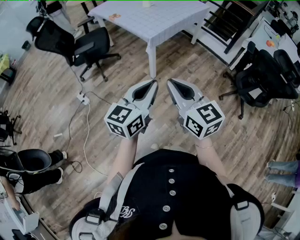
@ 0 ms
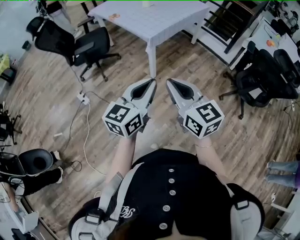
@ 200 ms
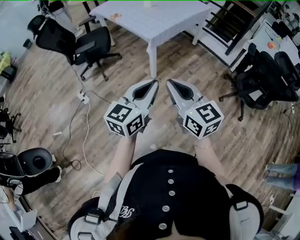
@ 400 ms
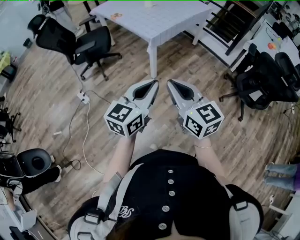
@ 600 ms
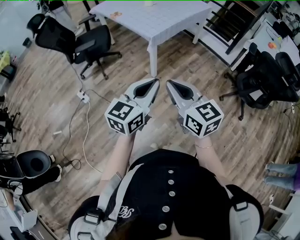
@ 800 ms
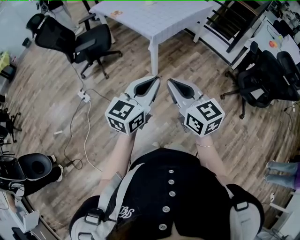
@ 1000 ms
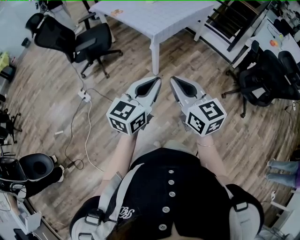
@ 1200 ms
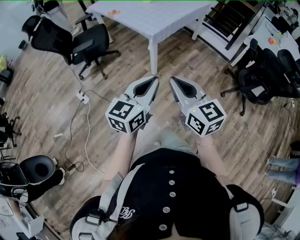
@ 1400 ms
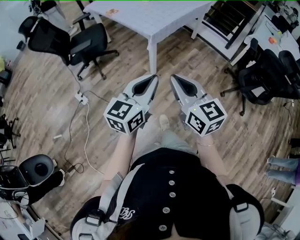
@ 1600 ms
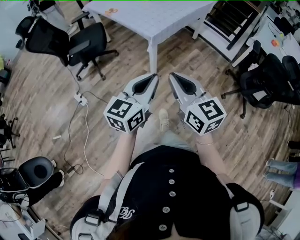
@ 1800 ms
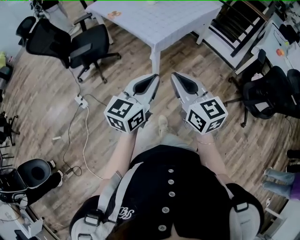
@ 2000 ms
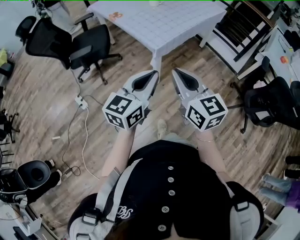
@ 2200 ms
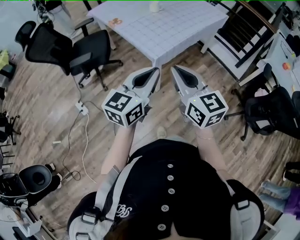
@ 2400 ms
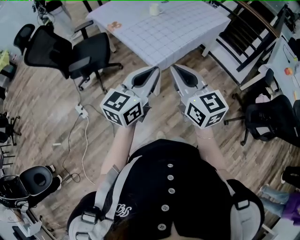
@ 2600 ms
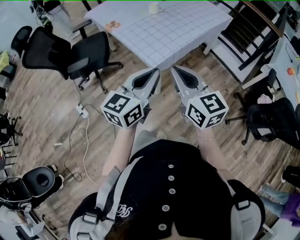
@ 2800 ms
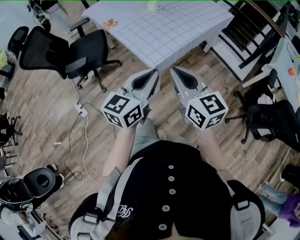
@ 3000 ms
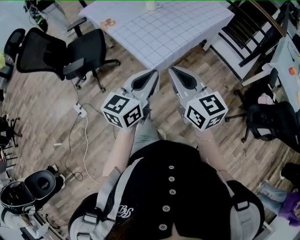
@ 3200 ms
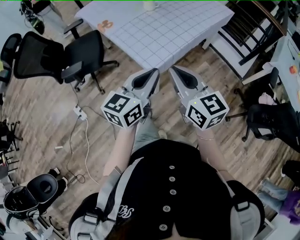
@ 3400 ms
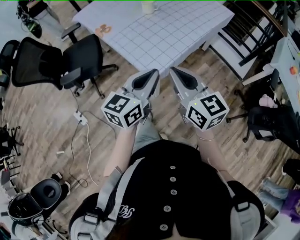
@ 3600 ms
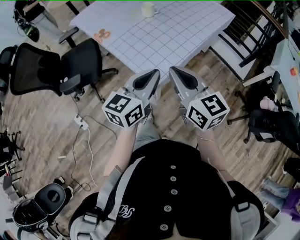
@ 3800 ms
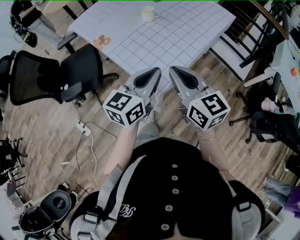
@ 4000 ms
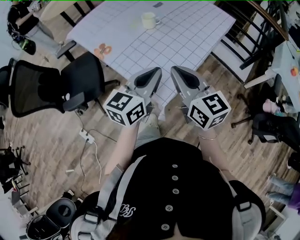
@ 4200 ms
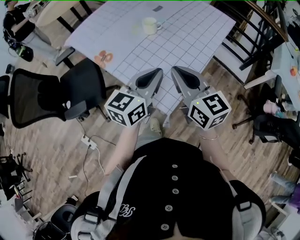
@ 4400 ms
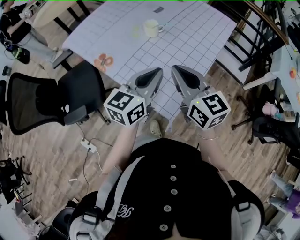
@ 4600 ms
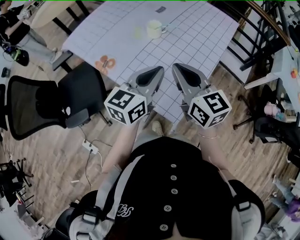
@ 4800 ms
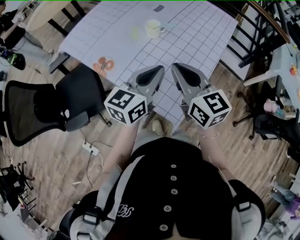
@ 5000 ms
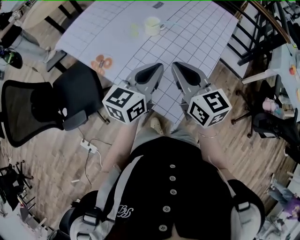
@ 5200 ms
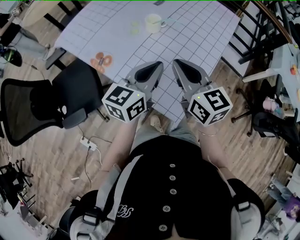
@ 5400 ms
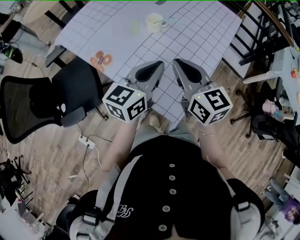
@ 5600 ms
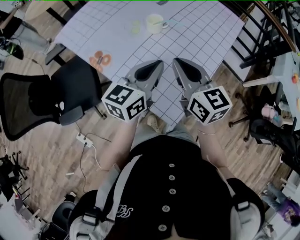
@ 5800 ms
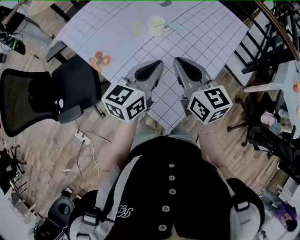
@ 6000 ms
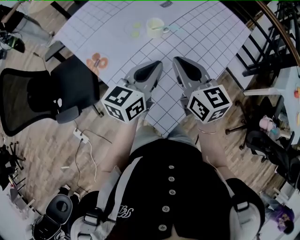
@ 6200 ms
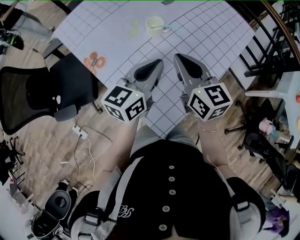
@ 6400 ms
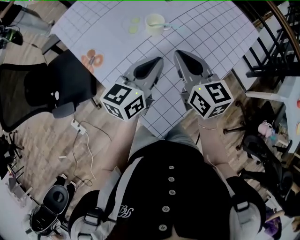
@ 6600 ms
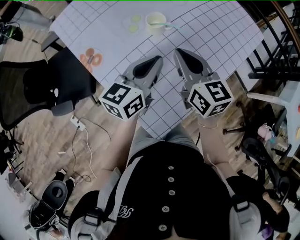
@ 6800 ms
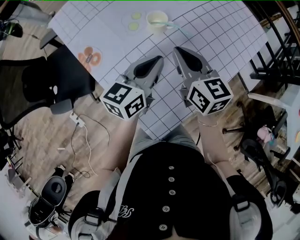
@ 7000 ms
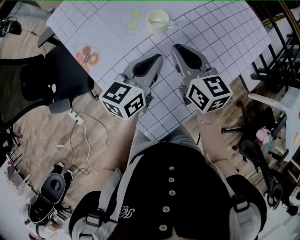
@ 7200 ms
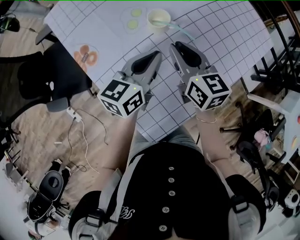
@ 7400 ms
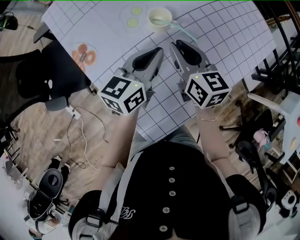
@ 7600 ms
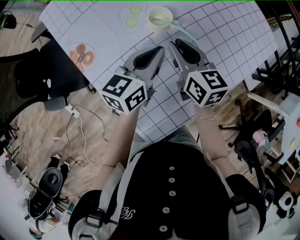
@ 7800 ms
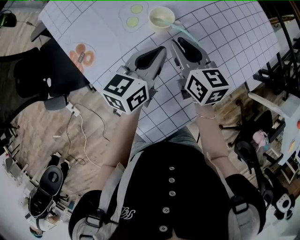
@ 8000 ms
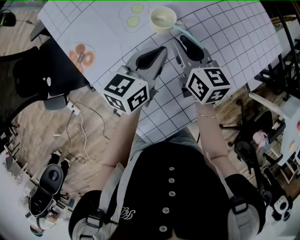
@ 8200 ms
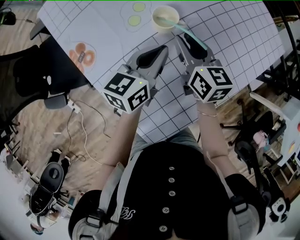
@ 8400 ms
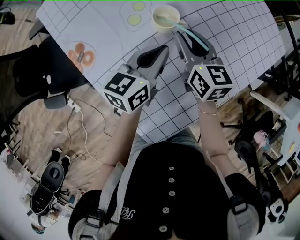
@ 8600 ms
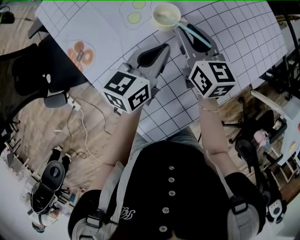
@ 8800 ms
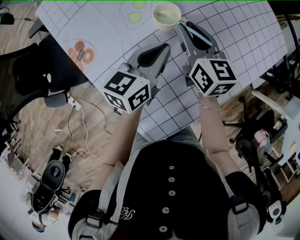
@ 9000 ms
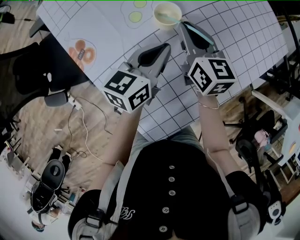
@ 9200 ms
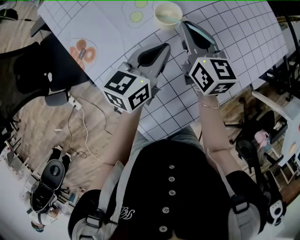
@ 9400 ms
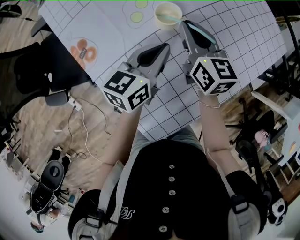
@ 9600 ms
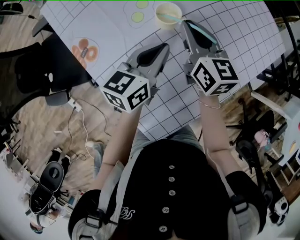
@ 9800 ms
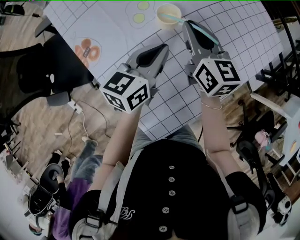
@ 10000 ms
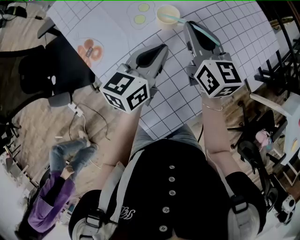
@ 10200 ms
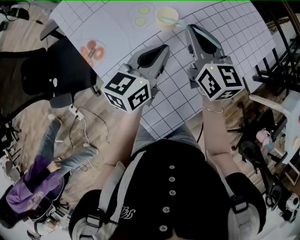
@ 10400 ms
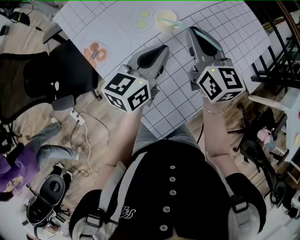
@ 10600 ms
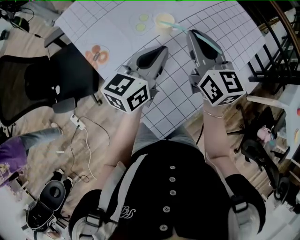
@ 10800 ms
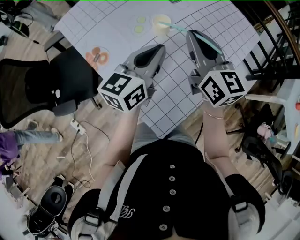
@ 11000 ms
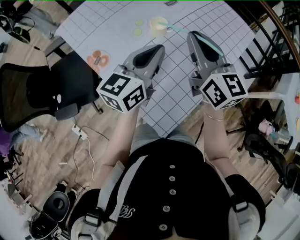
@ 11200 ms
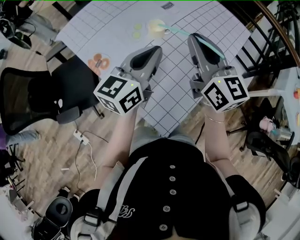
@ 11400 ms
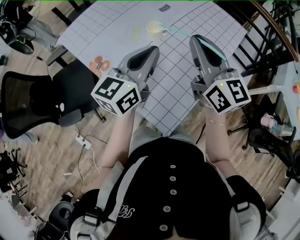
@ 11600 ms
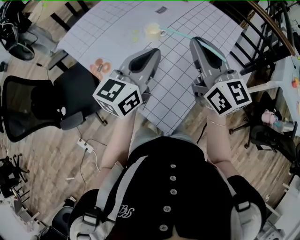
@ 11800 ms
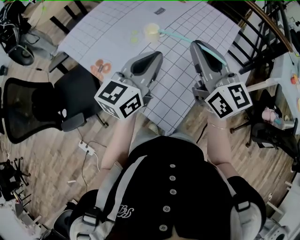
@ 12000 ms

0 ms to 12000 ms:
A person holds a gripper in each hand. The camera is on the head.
0 ms to 1600 ms: Both grippers travel together forward, about 5 cm.
1600 ms to 3000 ms: Both grippers move forward, some 35 cm.
3000 ms to 4400 ms: Both grippers travel together forward, roughly 25 cm.
4400 ms to 6000 ms: Both grippers travel together forward, about 15 cm.
6000 ms to 7600 ms: The two grippers go approximately 20 cm forward and downward.
7600 ms to 9000 ms: The right gripper goes roughly 5 cm forward.
9000 ms to 10400 ms: The left gripper is displaced upward by some 5 cm. The right gripper travels upward and backward by roughly 10 cm.
10400 ms to 12000 ms: The right gripper shifts about 25 cm backward and upward. Meanwhile the left gripper is displaced upward and backward by roughly 20 cm, and swivels approximately 20 degrees.

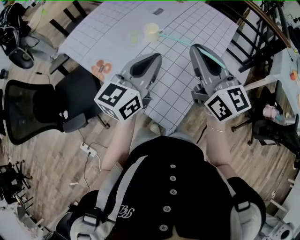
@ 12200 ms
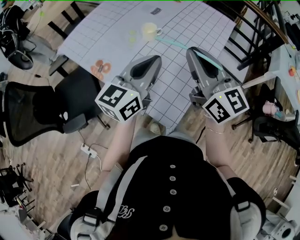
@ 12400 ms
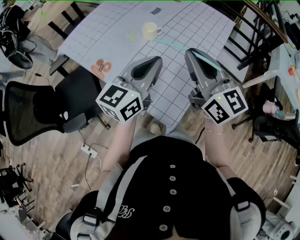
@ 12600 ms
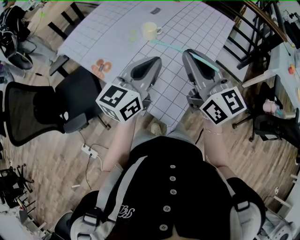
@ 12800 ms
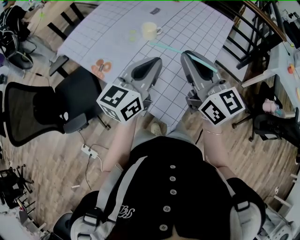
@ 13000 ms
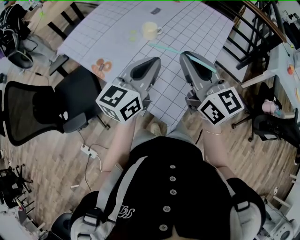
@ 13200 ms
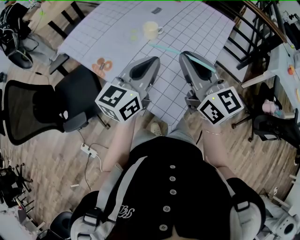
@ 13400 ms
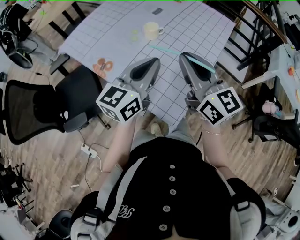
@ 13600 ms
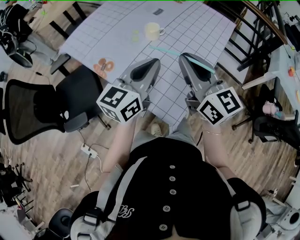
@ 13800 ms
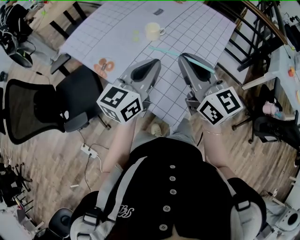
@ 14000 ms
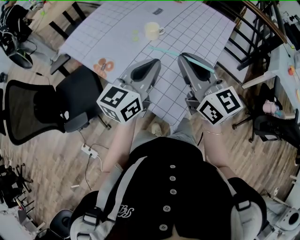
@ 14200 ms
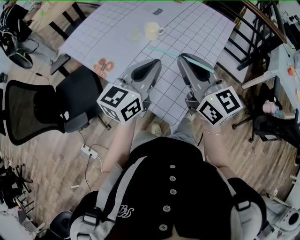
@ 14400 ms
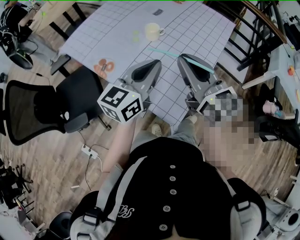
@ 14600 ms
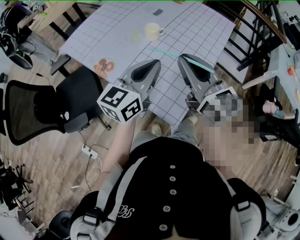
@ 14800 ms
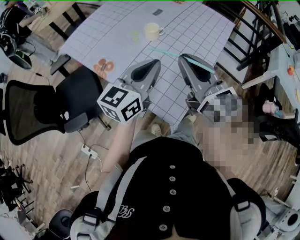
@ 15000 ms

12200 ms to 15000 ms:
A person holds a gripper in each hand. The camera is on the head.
12200 ms to 13600 ms: The right gripper moves approximately 5 cm.
13600 ms to 15000 ms: Both grippers stay put.

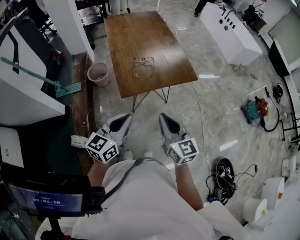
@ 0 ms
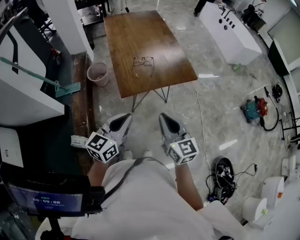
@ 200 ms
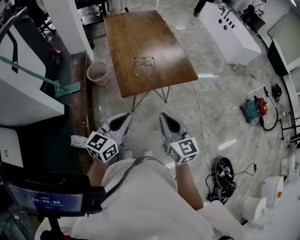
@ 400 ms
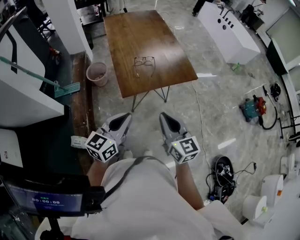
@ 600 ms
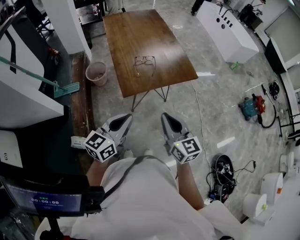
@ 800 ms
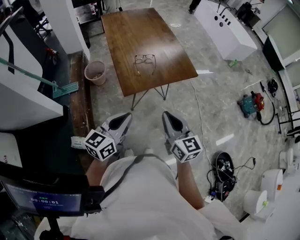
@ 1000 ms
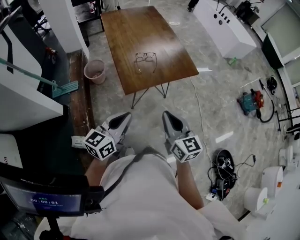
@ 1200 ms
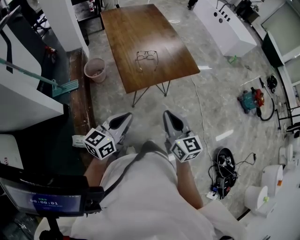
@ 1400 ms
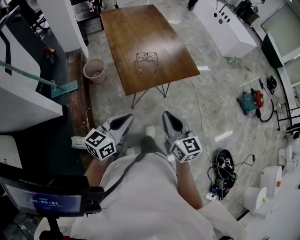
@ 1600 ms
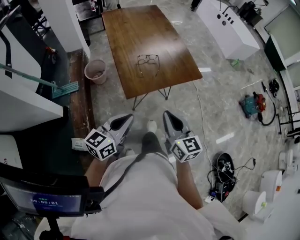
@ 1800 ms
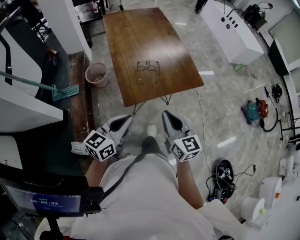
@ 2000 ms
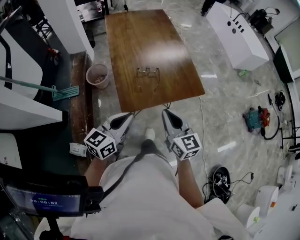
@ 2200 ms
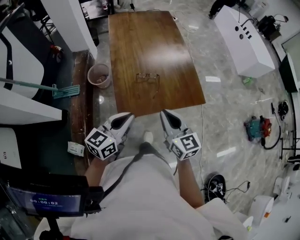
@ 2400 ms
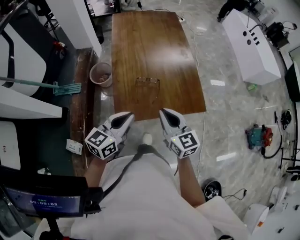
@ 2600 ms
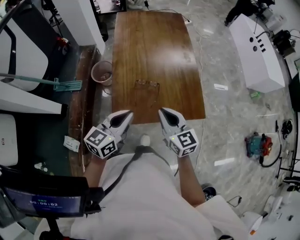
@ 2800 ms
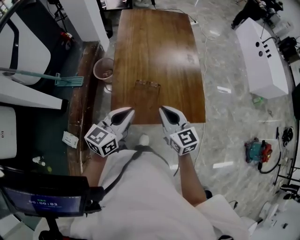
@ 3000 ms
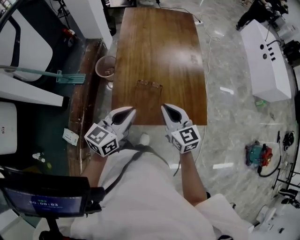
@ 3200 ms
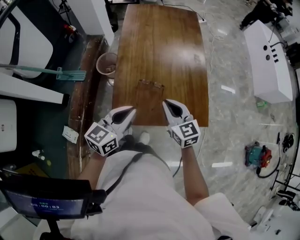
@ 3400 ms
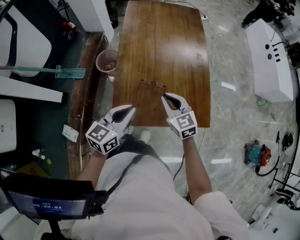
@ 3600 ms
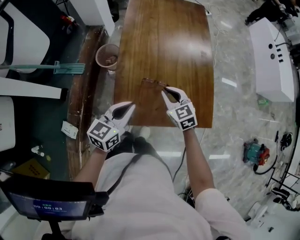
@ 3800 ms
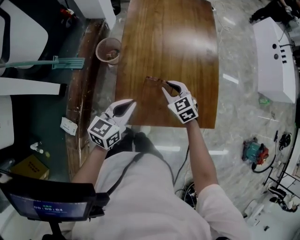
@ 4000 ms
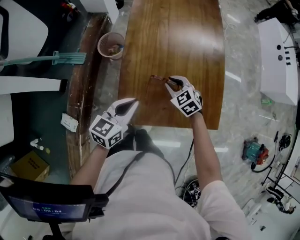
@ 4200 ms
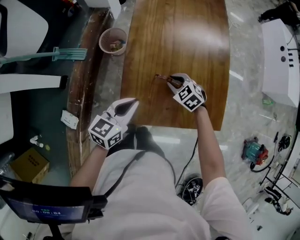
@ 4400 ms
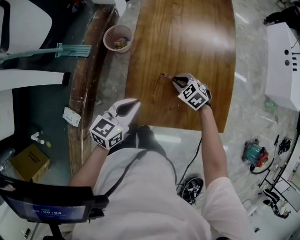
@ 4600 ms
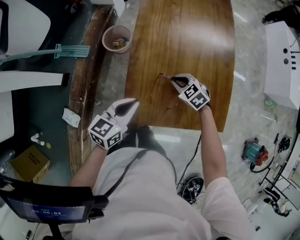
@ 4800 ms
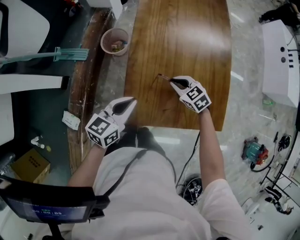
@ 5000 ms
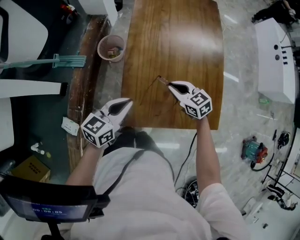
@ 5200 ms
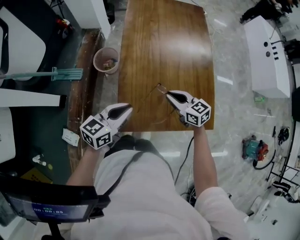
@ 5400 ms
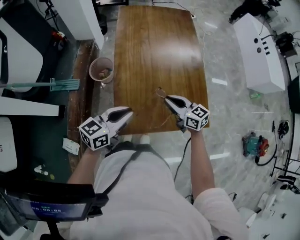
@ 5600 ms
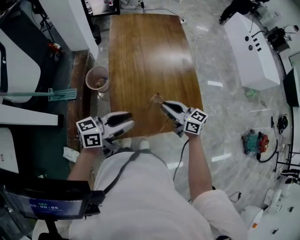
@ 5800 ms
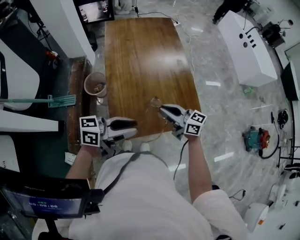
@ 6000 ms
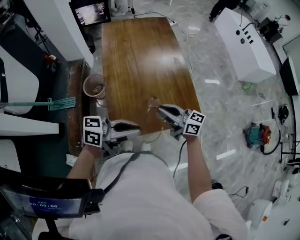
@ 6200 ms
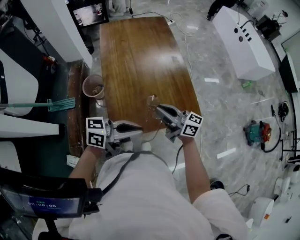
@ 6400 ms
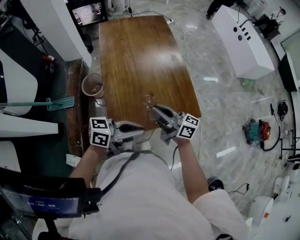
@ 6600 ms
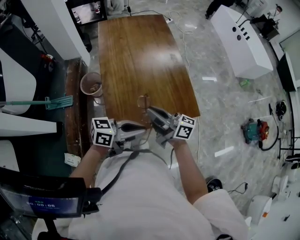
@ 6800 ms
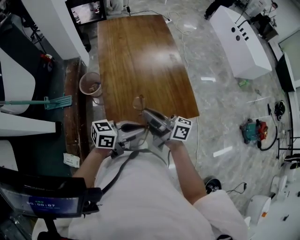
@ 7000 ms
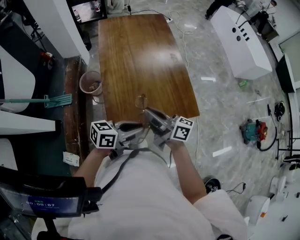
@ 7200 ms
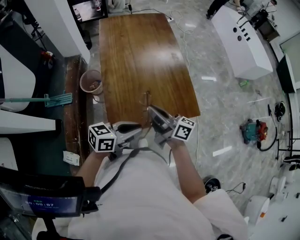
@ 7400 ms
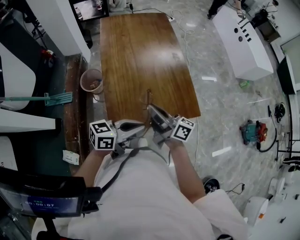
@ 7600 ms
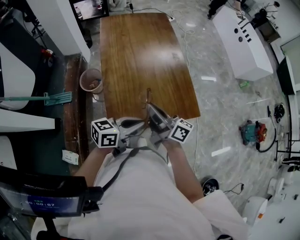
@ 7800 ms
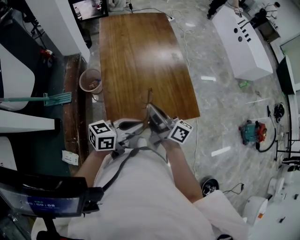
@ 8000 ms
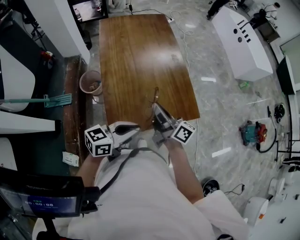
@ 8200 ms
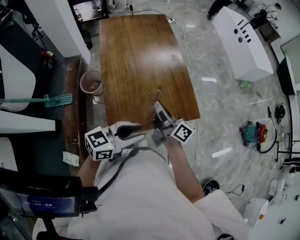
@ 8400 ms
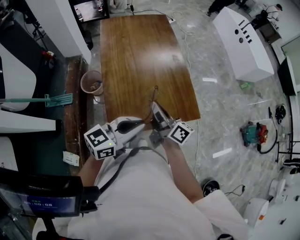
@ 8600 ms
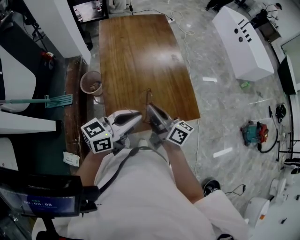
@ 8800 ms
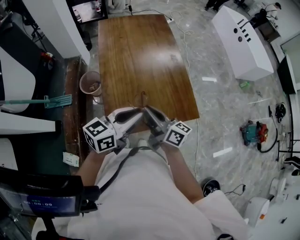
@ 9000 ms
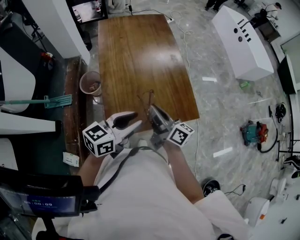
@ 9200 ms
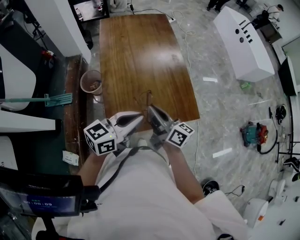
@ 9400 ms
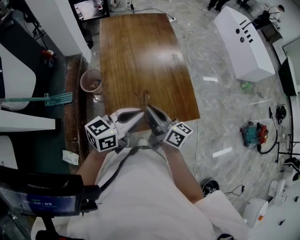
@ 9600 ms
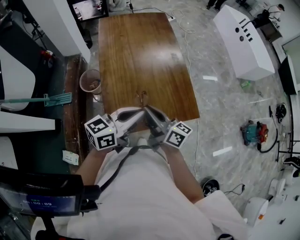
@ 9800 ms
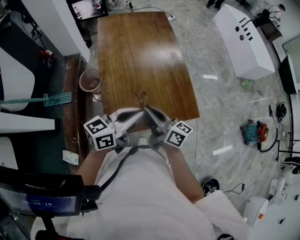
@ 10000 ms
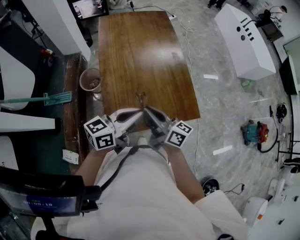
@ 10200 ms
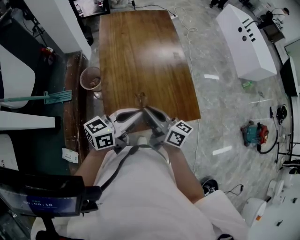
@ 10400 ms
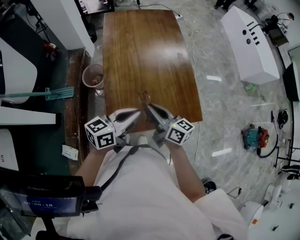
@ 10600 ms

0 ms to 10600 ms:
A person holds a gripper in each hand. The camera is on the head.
0 ms to 1600 ms: Both grippers travel together to the left, roughly 5 cm.
1600 ms to 3000 ms: The grippers both shift forward by about 30 cm. The left gripper rotates roughly 20 degrees. The right gripper changes its angle by approximately 30 degrees.
3000 ms to 4600 ms: The left gripper moves downward, forward and to the left, some 20 cm. Meanwhile the right gripper moves downward and forward, about 30 cm, and angles its fingers downward, by some 40 degrees.
4600 ms to 6000 ms: Both grippers travel together upward, some 20 cm. The right gripper points its fingers some 60 degrees further upward. Meanwhile the left gripper swivels roughly 50 degrees, and opens its fingers.
6000 ms to 7600 ms: The left gripper changes place by approximately 5 cm, and closes, while the right gripper ends up about 5 cm from where it was, and swivels about 30 degrees.
7600 ms to 9000 ms: The left gripper is displaced forward by some 5 cm.
9000 ms to 10600 ms: The left gripper opens and closes again.
